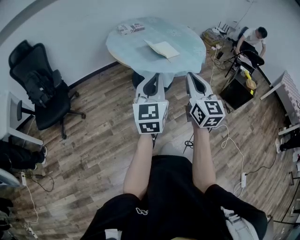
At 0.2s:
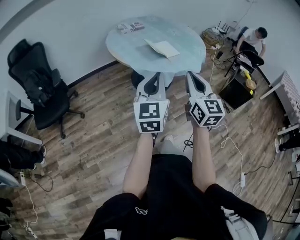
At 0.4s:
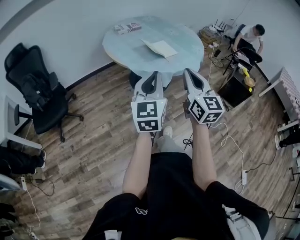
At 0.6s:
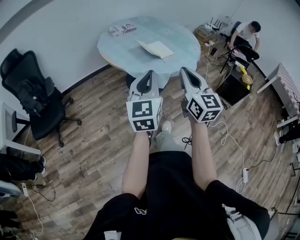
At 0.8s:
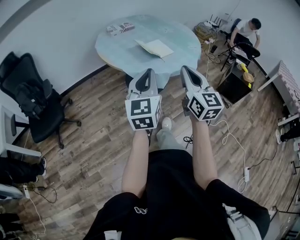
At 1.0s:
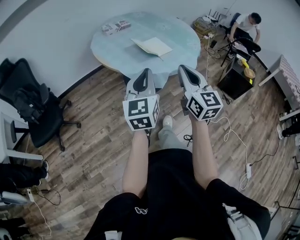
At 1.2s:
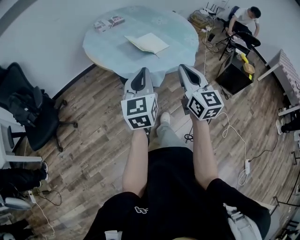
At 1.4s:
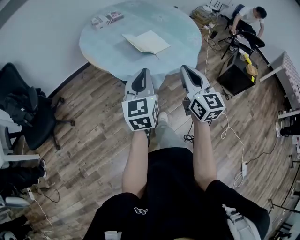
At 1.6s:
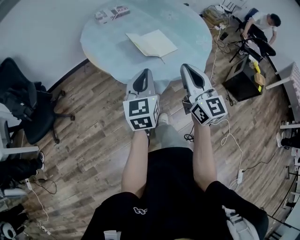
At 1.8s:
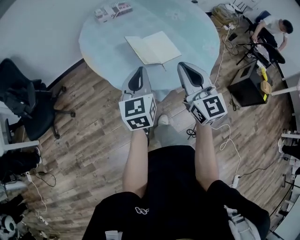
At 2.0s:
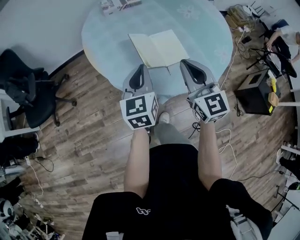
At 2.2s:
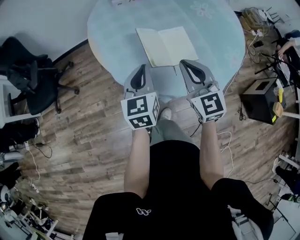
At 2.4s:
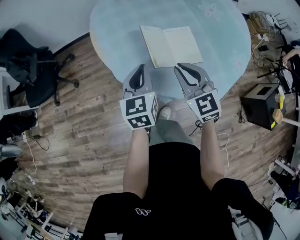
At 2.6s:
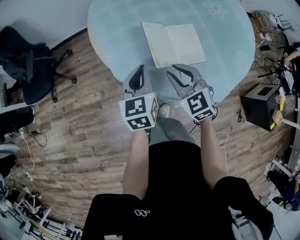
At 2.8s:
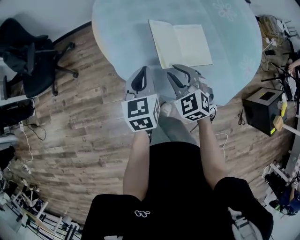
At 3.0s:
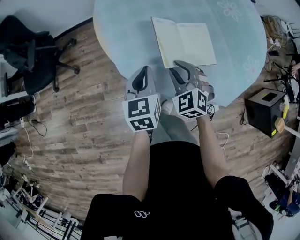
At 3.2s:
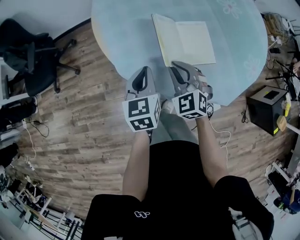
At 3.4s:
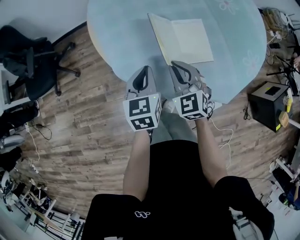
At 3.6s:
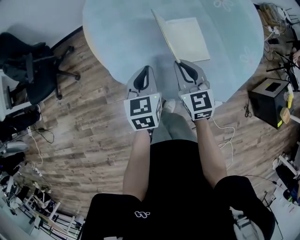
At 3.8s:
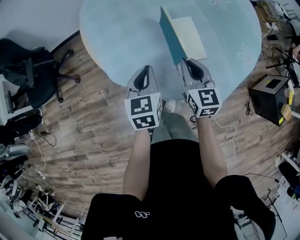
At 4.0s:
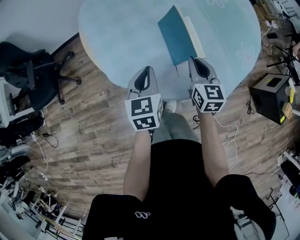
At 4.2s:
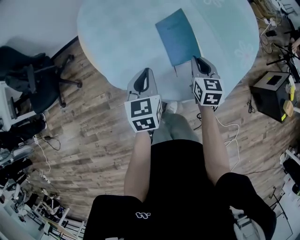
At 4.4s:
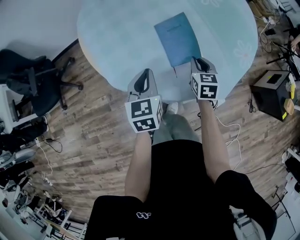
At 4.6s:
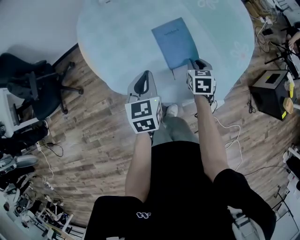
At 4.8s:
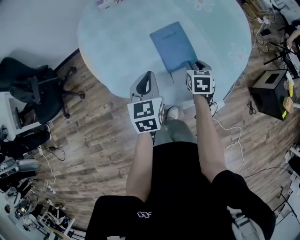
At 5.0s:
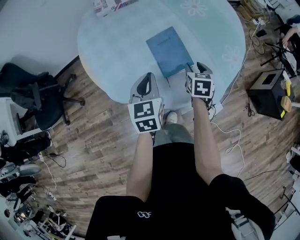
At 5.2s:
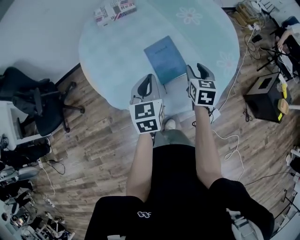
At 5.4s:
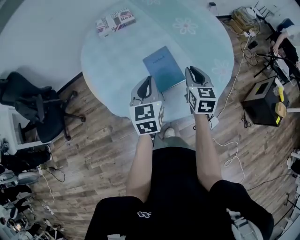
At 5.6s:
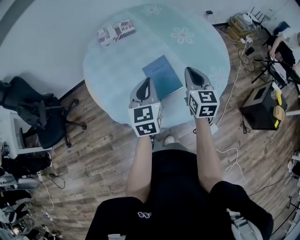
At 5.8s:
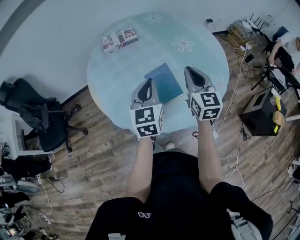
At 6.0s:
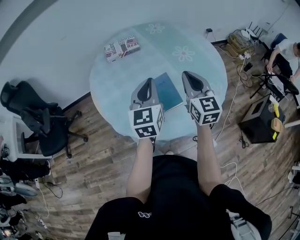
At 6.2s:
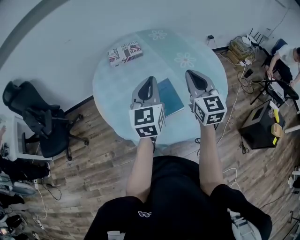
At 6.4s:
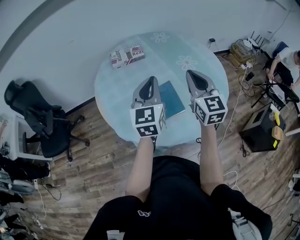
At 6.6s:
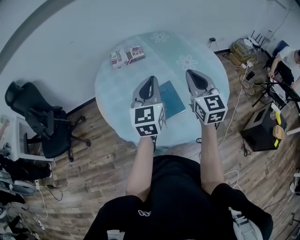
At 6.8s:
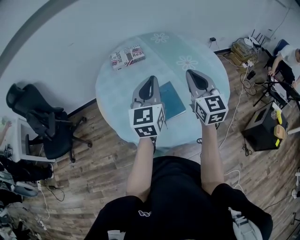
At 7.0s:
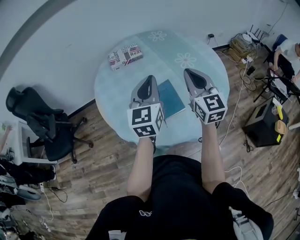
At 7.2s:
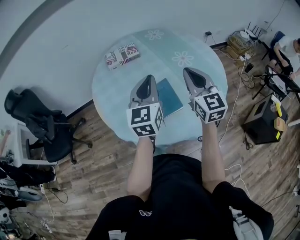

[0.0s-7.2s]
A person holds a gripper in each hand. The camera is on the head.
0.0s to 1.4s: The two grippers go roughly 25 cm forward and downward.
1.4s to 2.8s: The left gripper changes place by some 30 cm, and rotates approximately 40 degrees. The right gripper changes place by about 35 cm, tilts its fingers about 40 degrees downward, and opens its fingers.
2.8s to 4.4s: The left gripper travels to the right by about 5 cm; the right gripper shifts about 20 cm to the right, and twists roughly 50 degrees clockwise, seen from behind.
4.4s to 5.8s: The left gripper goes roughly 20 cm upward and to the right, and turns by roughly 20 degrees. Meanwhile the right gripper shifts roughly 25 cm upward, tips its fingers upward by some 30 degrees, and opens, then closes again.
5.8s to 7.2s: Both grippers move upward, approximately 10 cm.

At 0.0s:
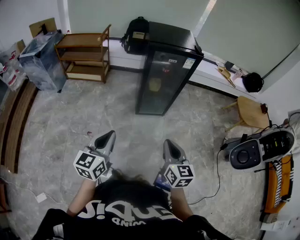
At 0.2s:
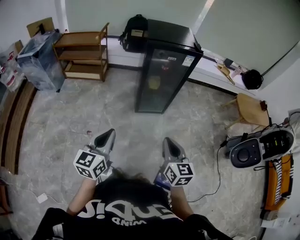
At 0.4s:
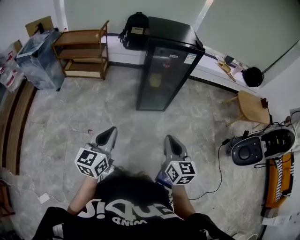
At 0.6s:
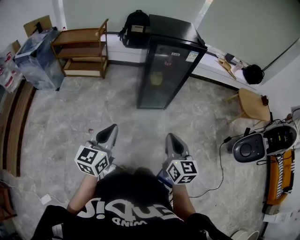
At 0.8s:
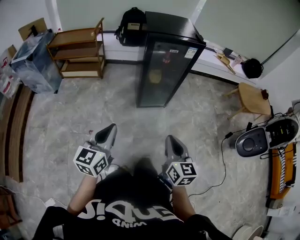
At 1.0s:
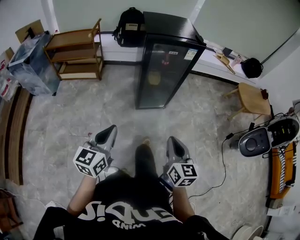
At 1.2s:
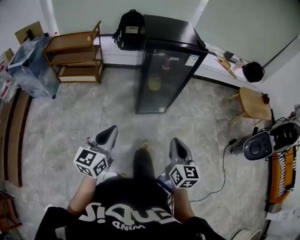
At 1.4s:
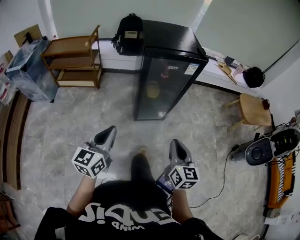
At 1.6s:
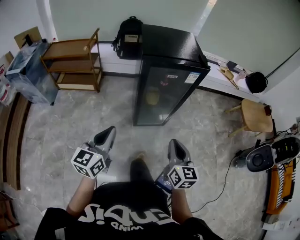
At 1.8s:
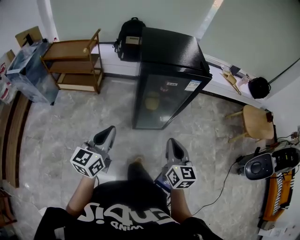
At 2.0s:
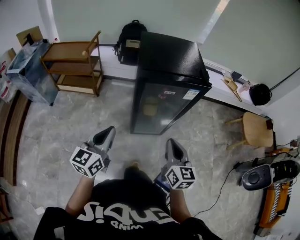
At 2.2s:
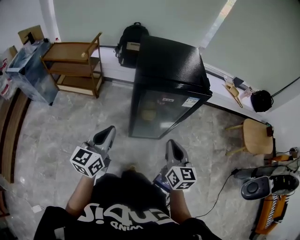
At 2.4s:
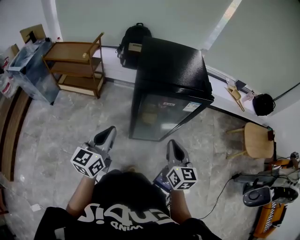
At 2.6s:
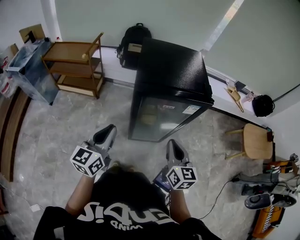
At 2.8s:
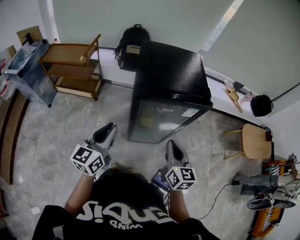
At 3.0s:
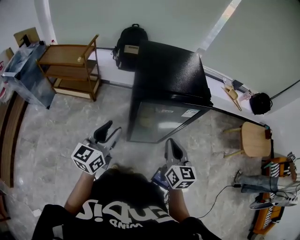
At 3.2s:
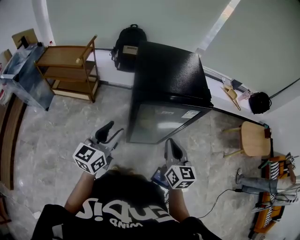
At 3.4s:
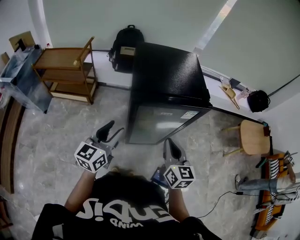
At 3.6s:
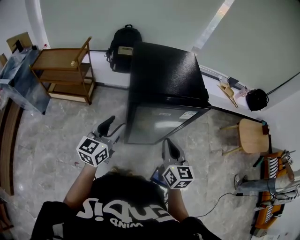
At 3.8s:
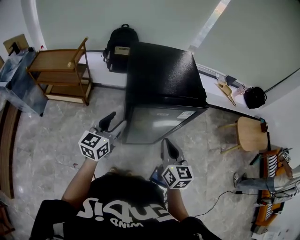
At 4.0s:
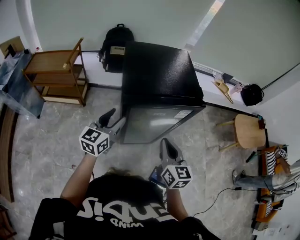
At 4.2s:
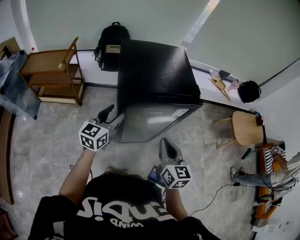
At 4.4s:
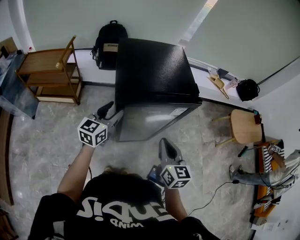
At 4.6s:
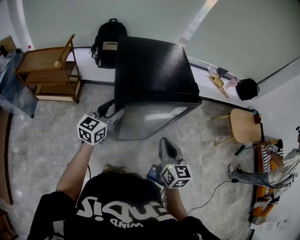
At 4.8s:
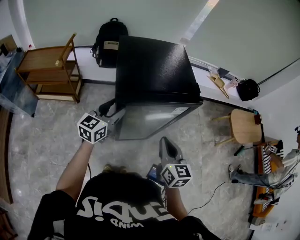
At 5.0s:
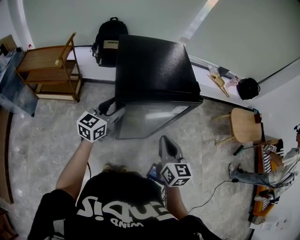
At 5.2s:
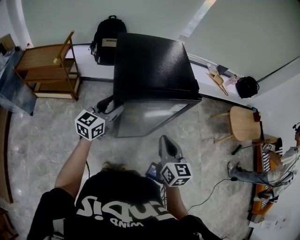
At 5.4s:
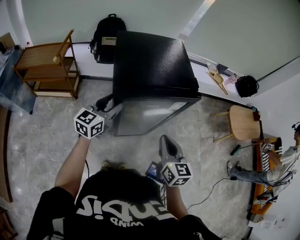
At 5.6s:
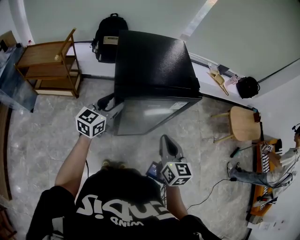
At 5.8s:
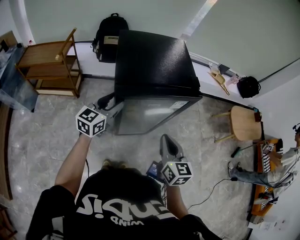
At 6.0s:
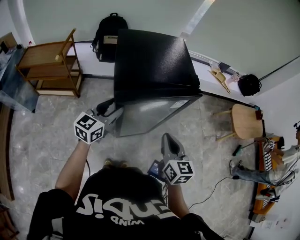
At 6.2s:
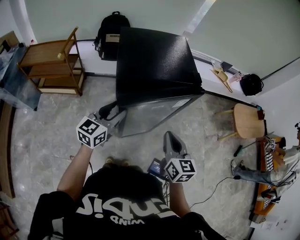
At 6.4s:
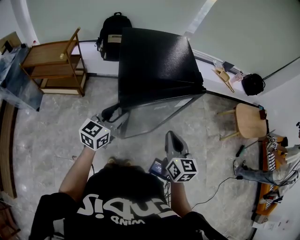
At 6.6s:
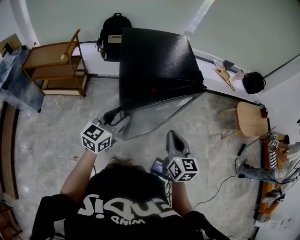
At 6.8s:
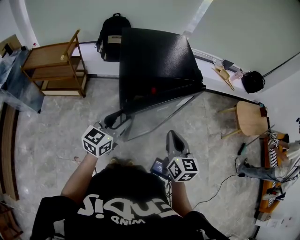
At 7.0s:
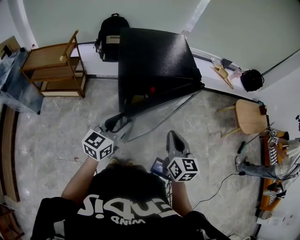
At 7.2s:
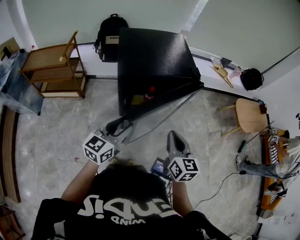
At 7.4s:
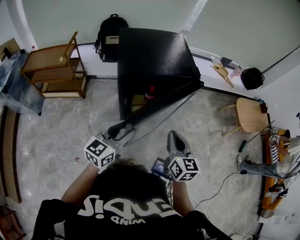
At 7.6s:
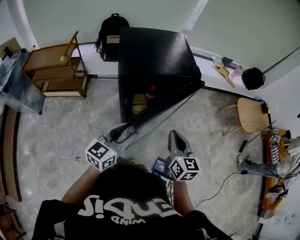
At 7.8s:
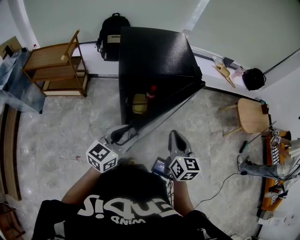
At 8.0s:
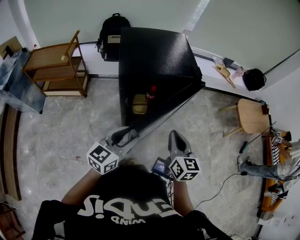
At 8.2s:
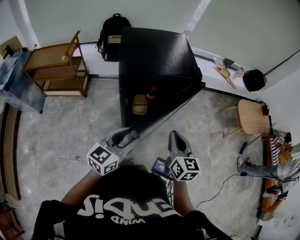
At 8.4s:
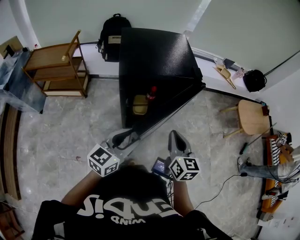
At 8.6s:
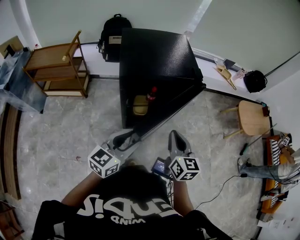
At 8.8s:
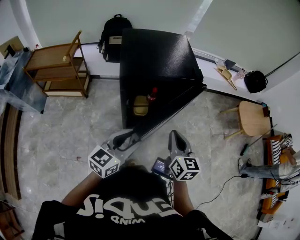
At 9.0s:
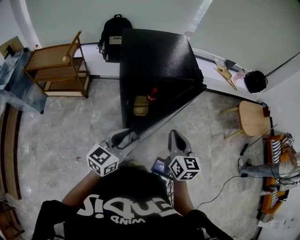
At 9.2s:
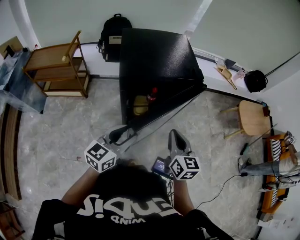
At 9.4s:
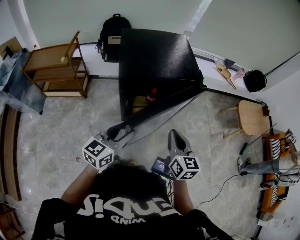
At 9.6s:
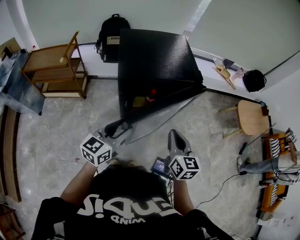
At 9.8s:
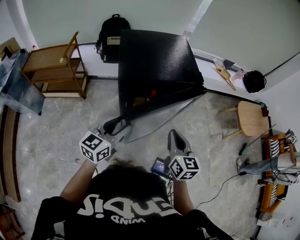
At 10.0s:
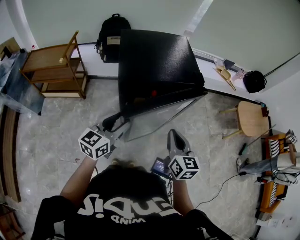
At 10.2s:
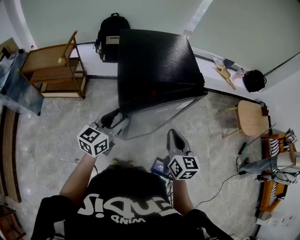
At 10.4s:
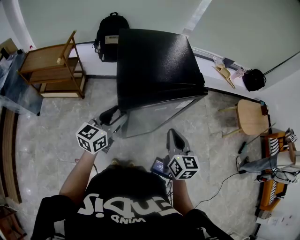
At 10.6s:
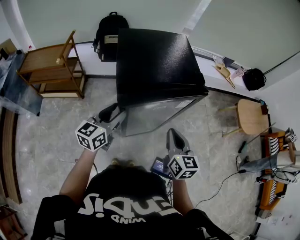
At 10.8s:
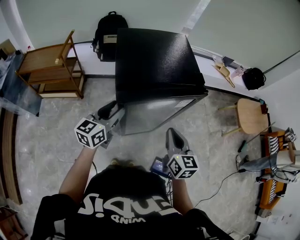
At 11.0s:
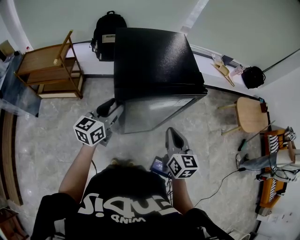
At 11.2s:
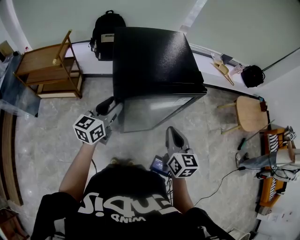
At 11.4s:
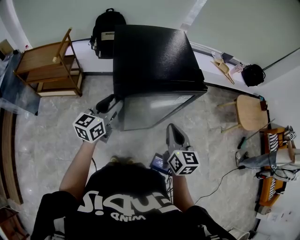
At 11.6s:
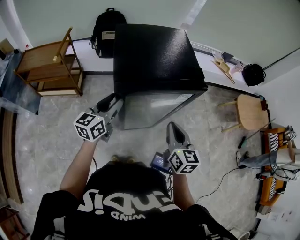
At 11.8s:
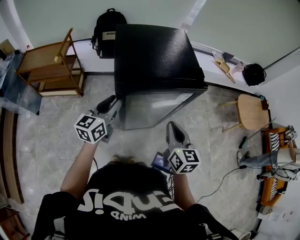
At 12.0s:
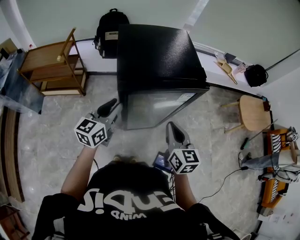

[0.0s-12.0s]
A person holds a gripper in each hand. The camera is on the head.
0.0s to 1.6s: The two grippers go approximately 25 cm forward.
1.6s to 3.0s: Both grippers move forward, some 25 cm. The left gripper opens.
3.0s to 4.4s: The left gripper is displaced forward by roughly 15 cm.
4.4s to 6.0s: The grippers move only a little.
6.0s to 7.6s: The left gripper is displaced backward and to the right by roughly 15 cm.
7.6s to 9.0s: The grippers stay close to where they were, moving slightly.
9.0s to 10.4s: The left gripper travels forward and to the left by roughly 15 cm.
10.4s to 12.0s: The left gripper closes its fingers.

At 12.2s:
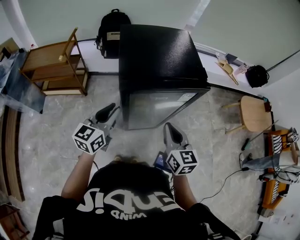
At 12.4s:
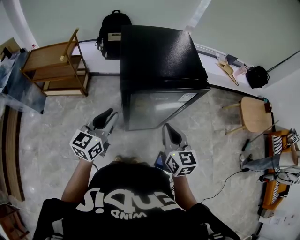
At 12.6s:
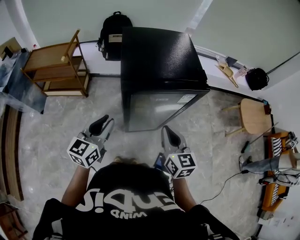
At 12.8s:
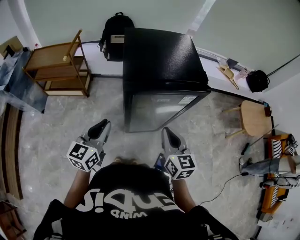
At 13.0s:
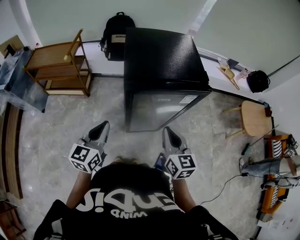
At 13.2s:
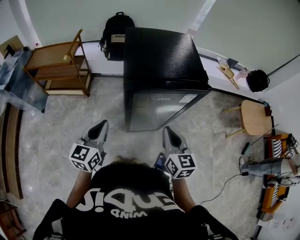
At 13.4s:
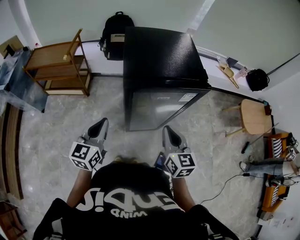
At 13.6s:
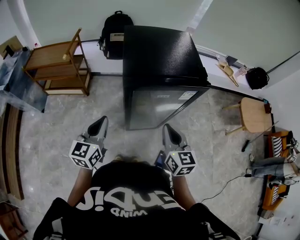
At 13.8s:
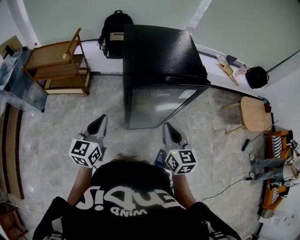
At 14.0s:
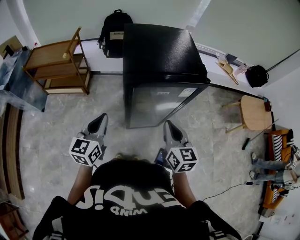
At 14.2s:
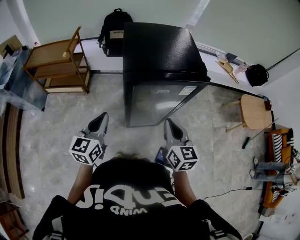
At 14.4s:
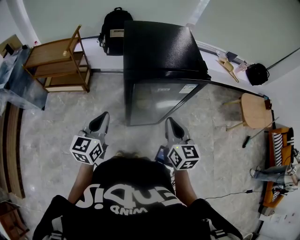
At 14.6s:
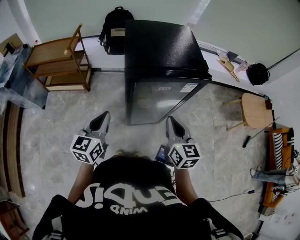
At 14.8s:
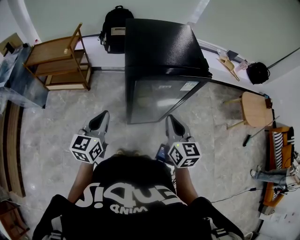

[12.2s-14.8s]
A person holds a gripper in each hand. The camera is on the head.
12.2s to 13.4s: The left gripper travels backward by some 5 cm, and closes its fingers.
13.4s to 14.8s: The grippers move only a little.

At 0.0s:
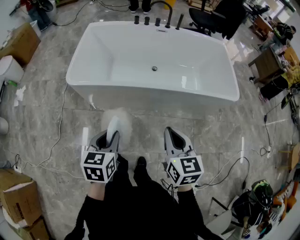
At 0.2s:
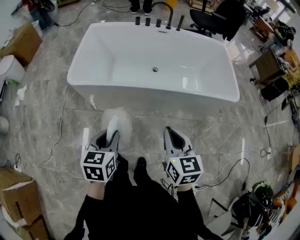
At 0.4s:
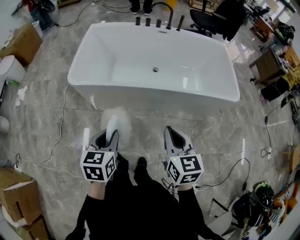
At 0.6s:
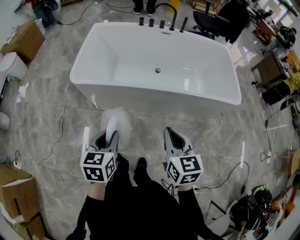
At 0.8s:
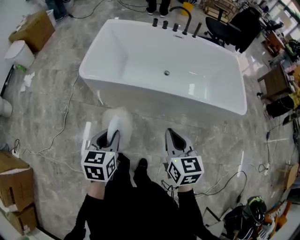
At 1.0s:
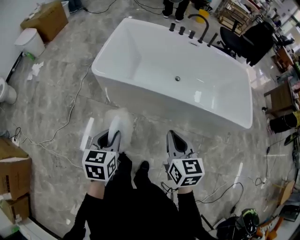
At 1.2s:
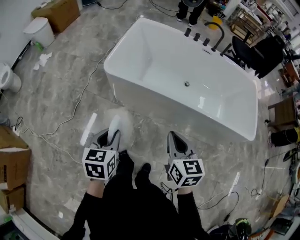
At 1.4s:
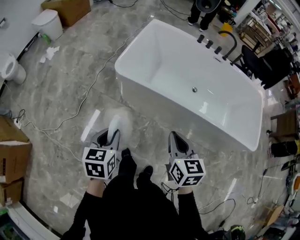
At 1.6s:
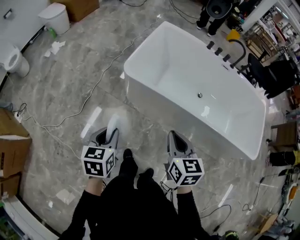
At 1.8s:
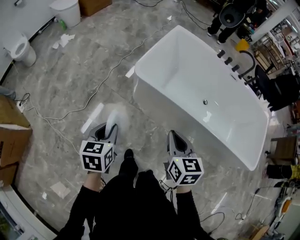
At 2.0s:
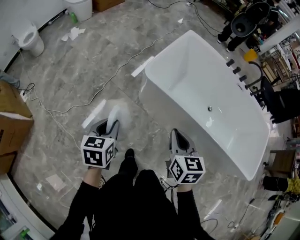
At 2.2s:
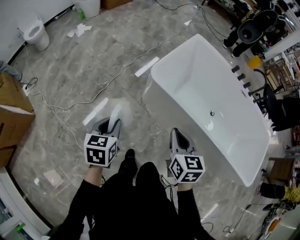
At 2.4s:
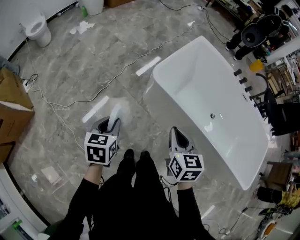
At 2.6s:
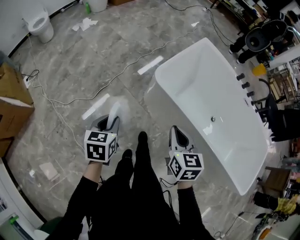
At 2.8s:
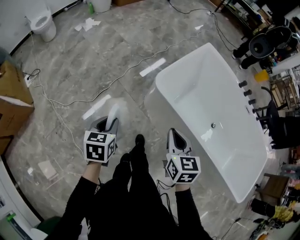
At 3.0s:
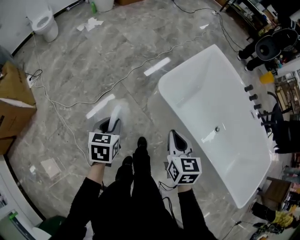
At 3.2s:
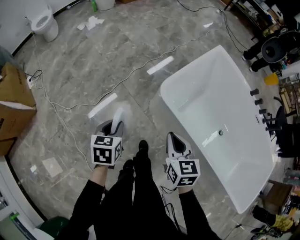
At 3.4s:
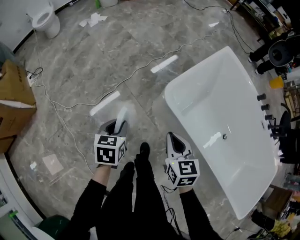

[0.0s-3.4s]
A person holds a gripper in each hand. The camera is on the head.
0.0s to 1.6s: The left gripper shifts roughly 25 cm to the left, and changes its angle by approximately 20 degrees. The right gripper moves to the left and forward, roughly 25 cm, and rotates about 20 degrees.
1.6s to 3.4s: The two grippers go some 30 cm forward, downward and to the left. The left gripper rotates some 20 degrees. The right gripper turns by roughly 30 degrees.
